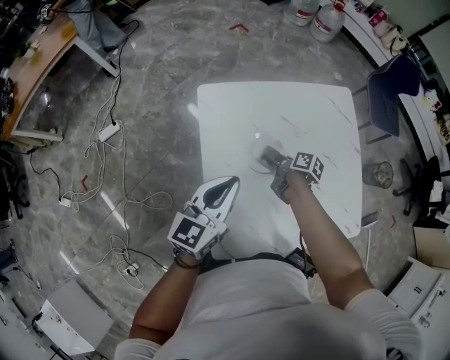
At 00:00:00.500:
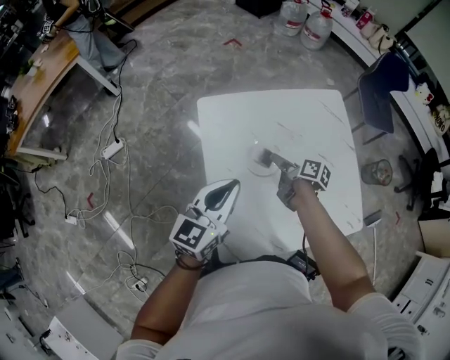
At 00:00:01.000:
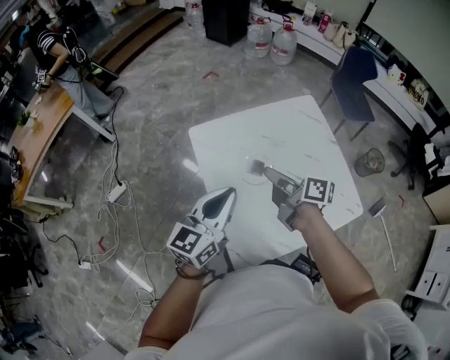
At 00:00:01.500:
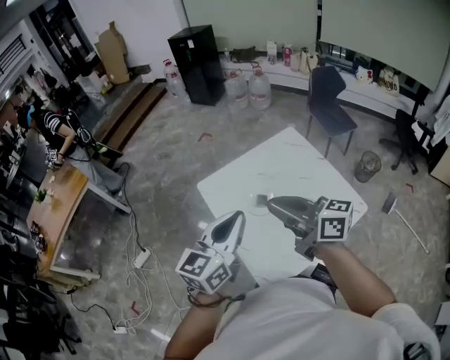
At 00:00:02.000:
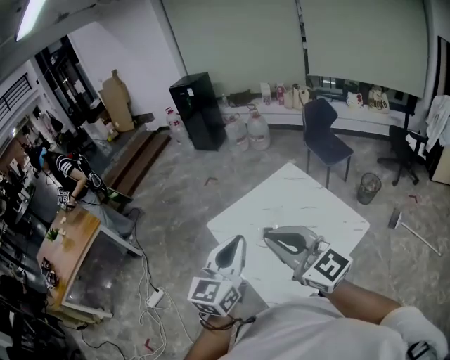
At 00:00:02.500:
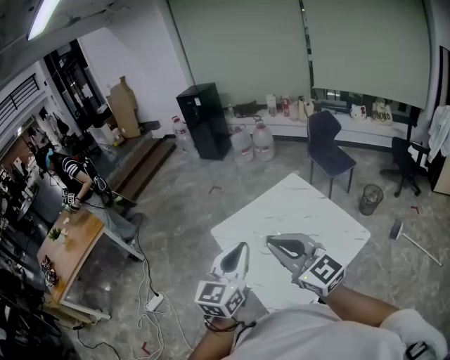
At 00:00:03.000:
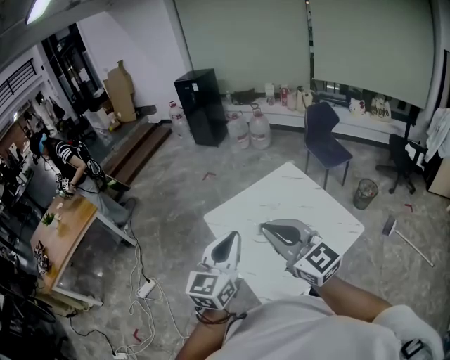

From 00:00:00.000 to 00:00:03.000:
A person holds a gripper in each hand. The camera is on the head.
From 00:00:00.000 to 00:00:01.500: The left gripper heads upward, covering approximately 25 cm.
From 00:00:01.500 to 00:00:03.000: The left gripper shifts by about 5 cm.

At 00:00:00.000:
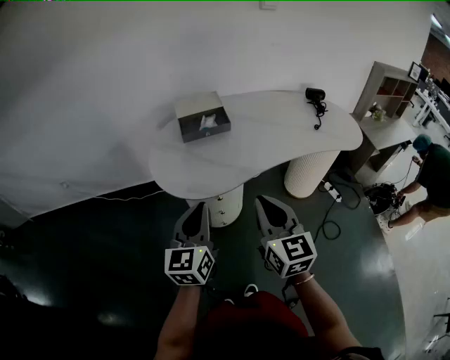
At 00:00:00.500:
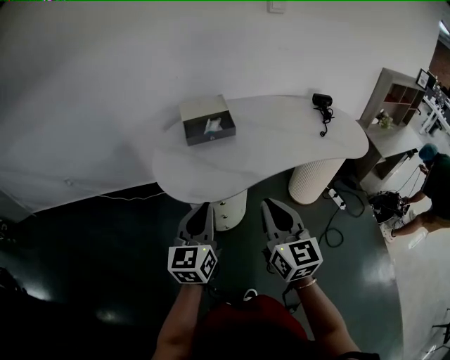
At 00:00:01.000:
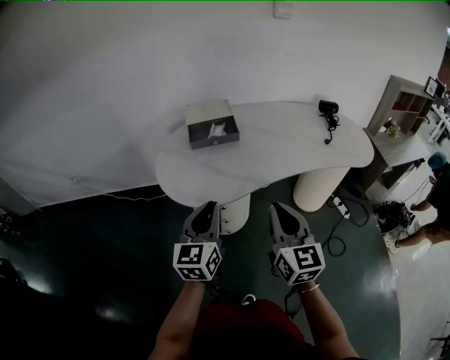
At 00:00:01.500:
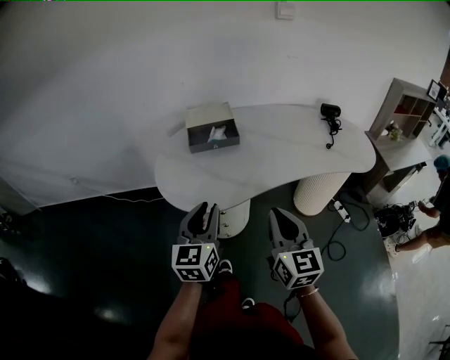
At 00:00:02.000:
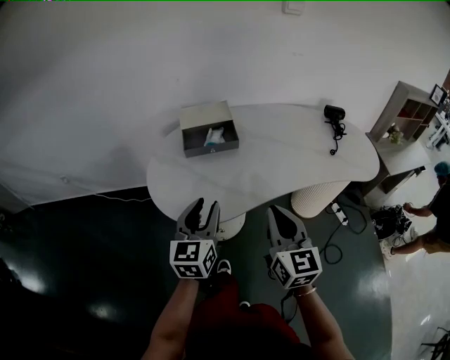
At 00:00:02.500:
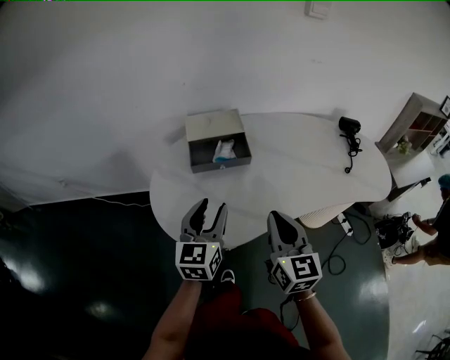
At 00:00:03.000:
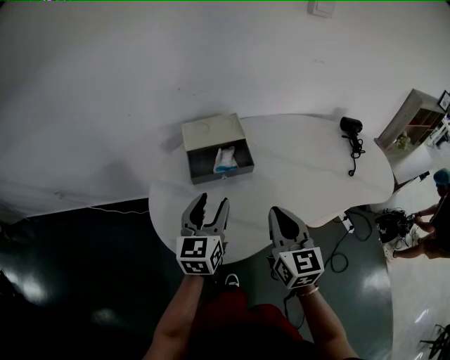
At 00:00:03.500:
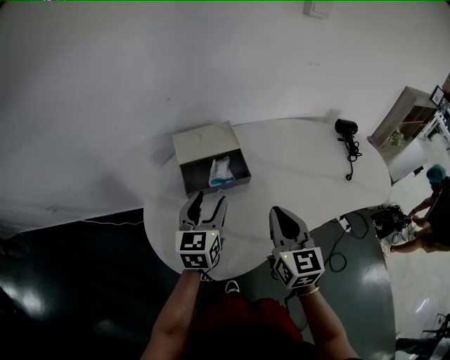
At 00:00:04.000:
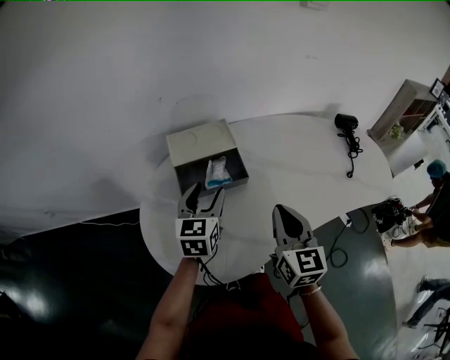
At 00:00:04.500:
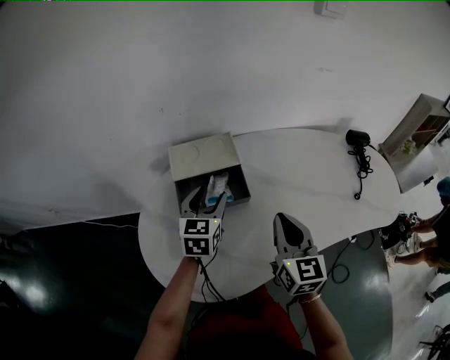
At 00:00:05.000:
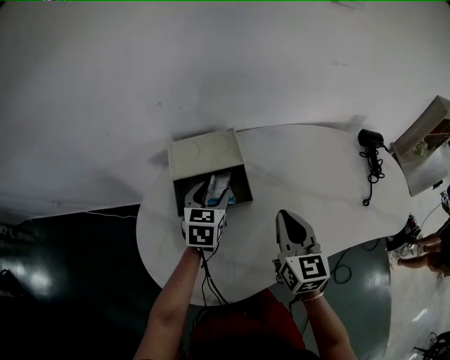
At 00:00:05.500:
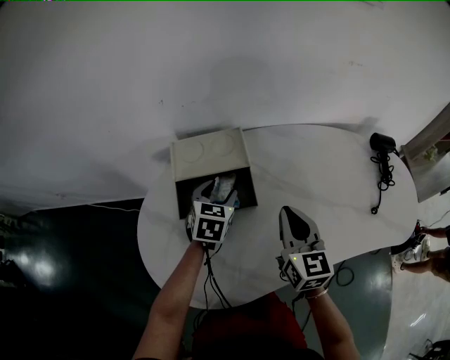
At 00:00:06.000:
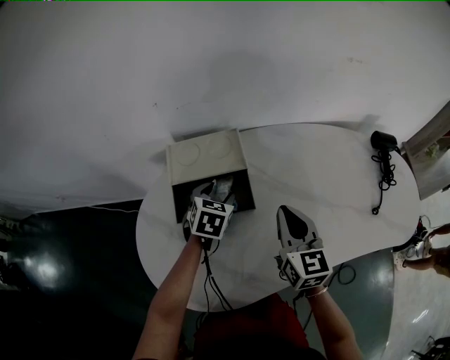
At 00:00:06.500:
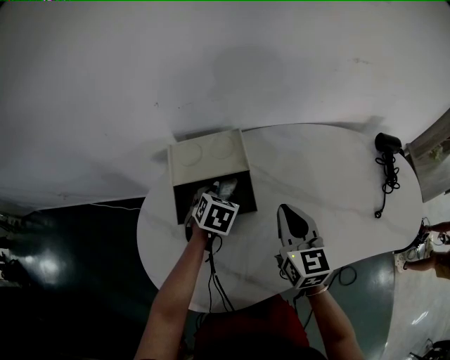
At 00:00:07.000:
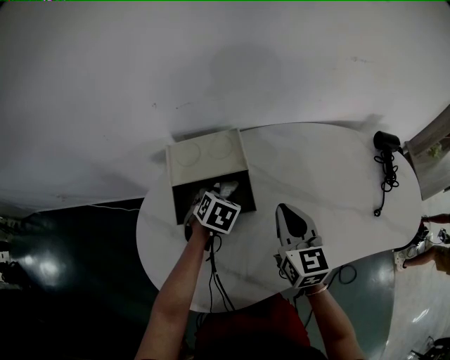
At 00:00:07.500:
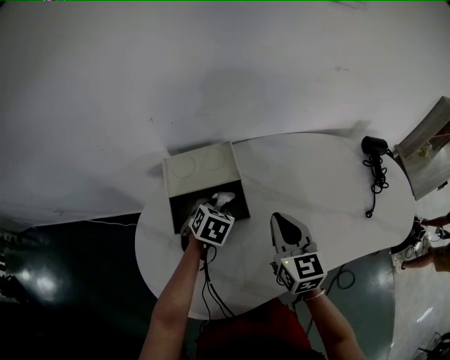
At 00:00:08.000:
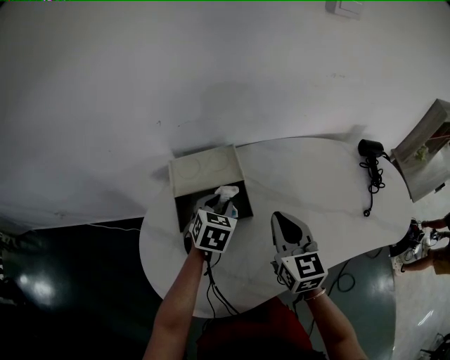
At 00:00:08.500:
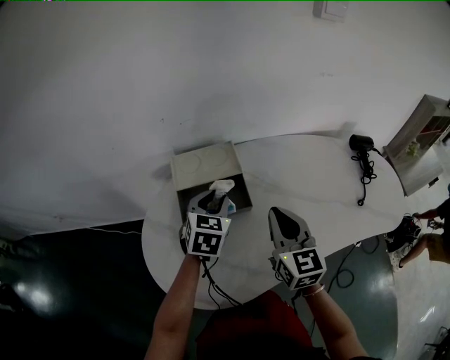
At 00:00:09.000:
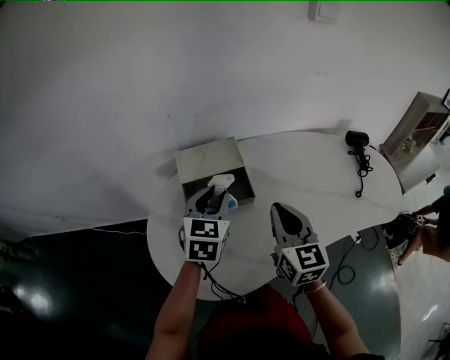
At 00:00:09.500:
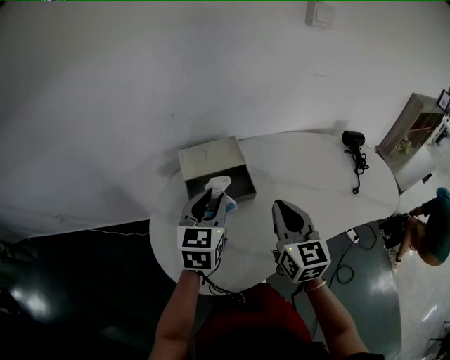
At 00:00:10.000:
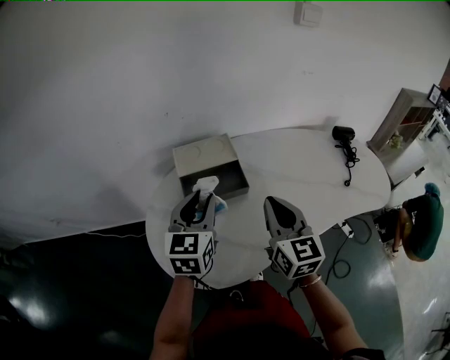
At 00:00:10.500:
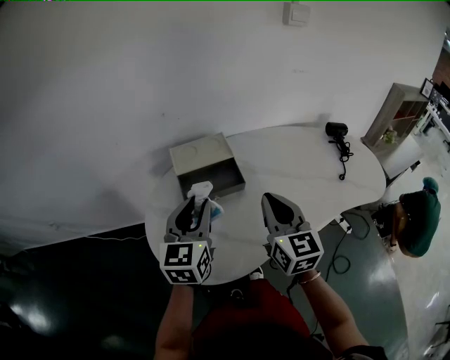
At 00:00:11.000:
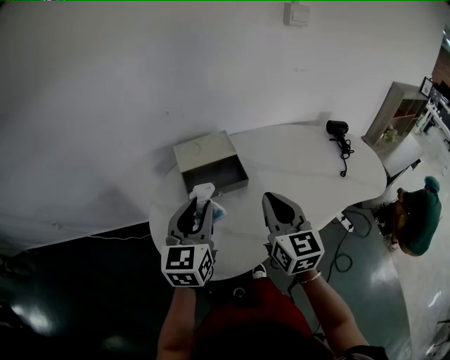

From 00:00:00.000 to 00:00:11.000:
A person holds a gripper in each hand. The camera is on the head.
From 00:00:00.000 to 00:00:02.000: The two grippers go approximately 10 cm forward. The left gripper opens up.
From 00:00:02.000 to 00:00:03.500: Both grippers move forward, roughly 20 cm. The left gripper opens its fingers.
From 00:00:03.500 to 00:00:05.500: The right gripper is displaced forward by about 15 cm. The left gripper shifts roughly 20 cm forward and downward, and rotates approximately 30 degrees.
From 00:00:05.500 to 00:00:07.500: The left gripper swivels about 20 degrees, and closes up.
From 00:00:07.500 to 00:00:09.000: The left gripper is displaced upward and backward by some 20 cm, and tips its fingers upward by approximately 30 degrees; the right gripper travels backward and upward by about 10 cm.
From 00:00:09.000 to 00:00:11.000: The left gripper heads backward and upward, covering some 15 cm; the right gripper heads backward, covering about 10 cm.

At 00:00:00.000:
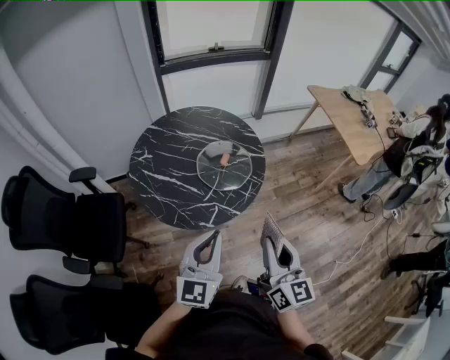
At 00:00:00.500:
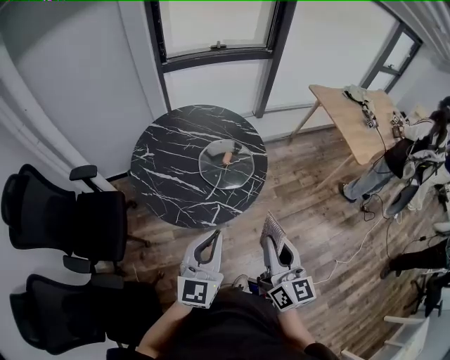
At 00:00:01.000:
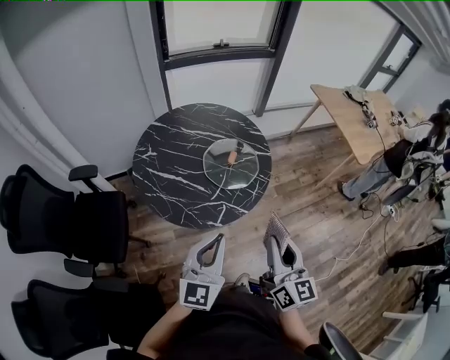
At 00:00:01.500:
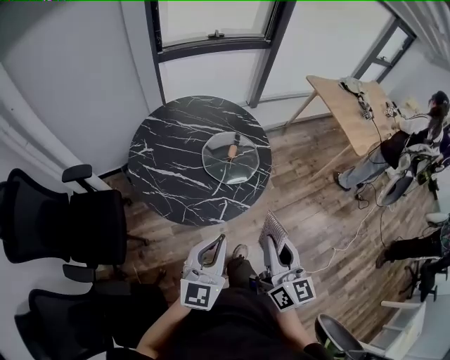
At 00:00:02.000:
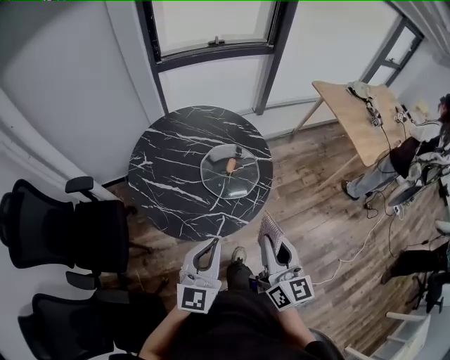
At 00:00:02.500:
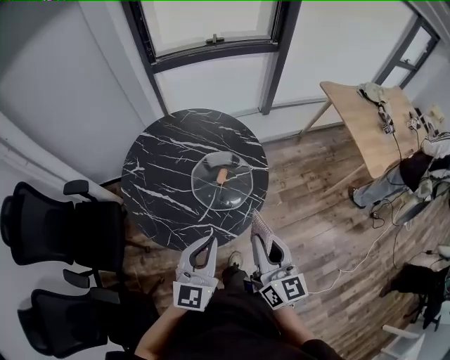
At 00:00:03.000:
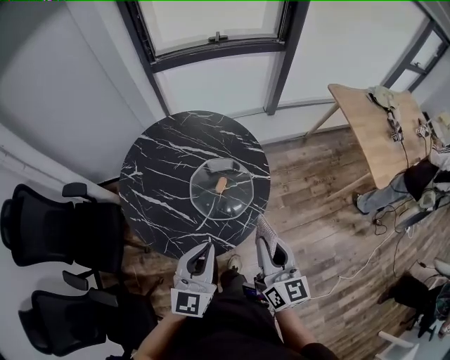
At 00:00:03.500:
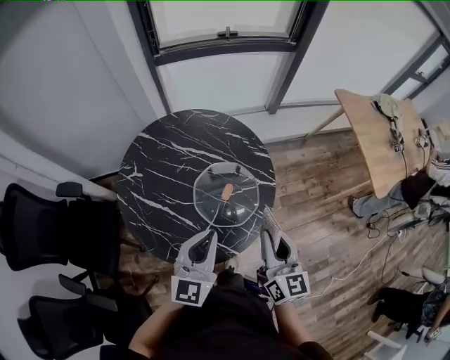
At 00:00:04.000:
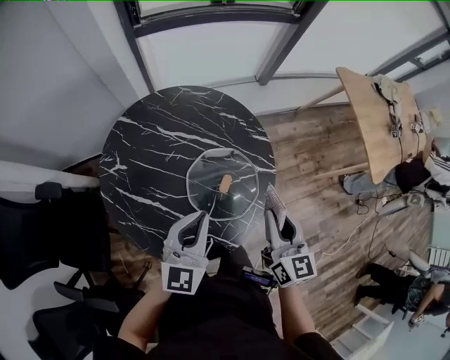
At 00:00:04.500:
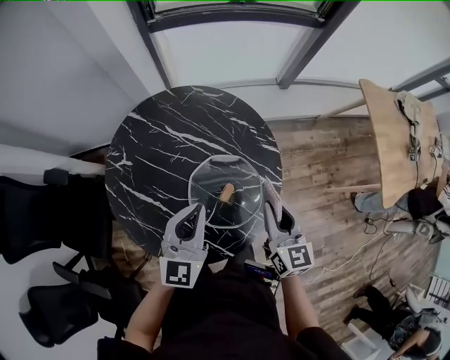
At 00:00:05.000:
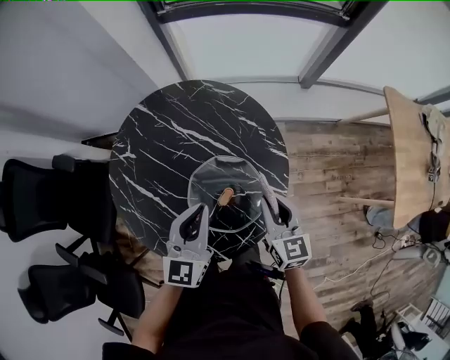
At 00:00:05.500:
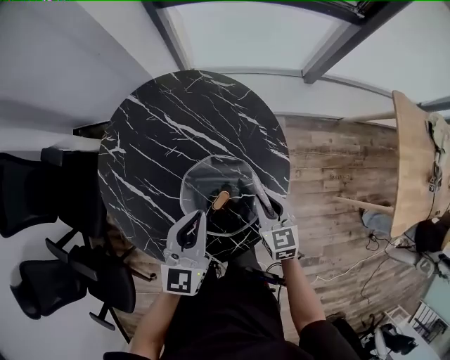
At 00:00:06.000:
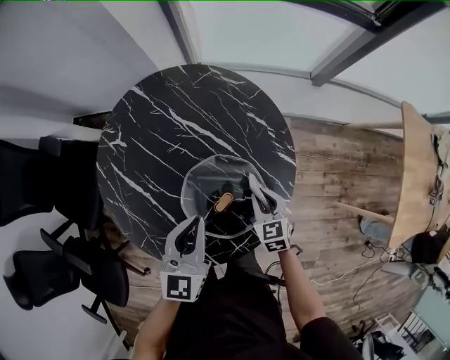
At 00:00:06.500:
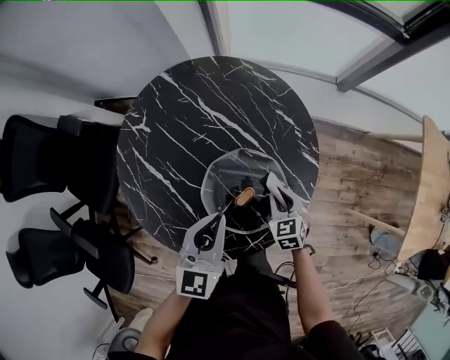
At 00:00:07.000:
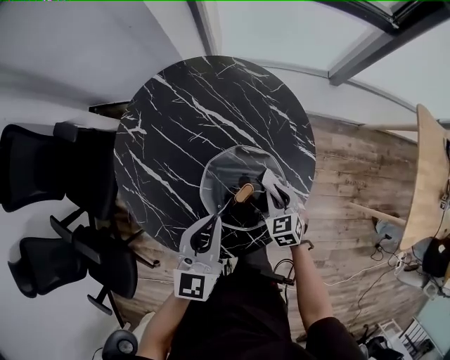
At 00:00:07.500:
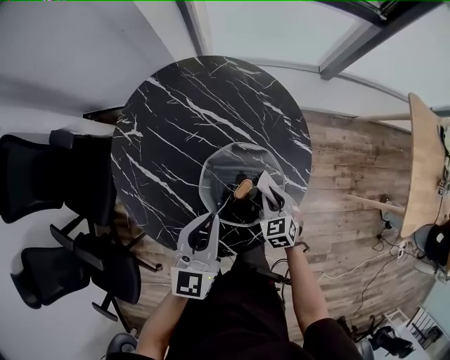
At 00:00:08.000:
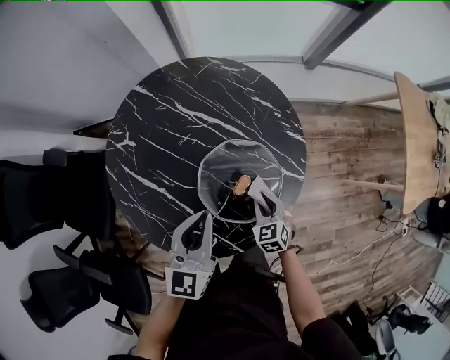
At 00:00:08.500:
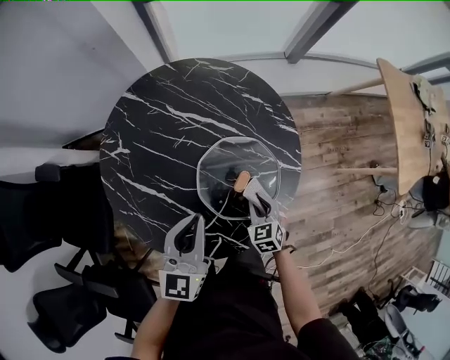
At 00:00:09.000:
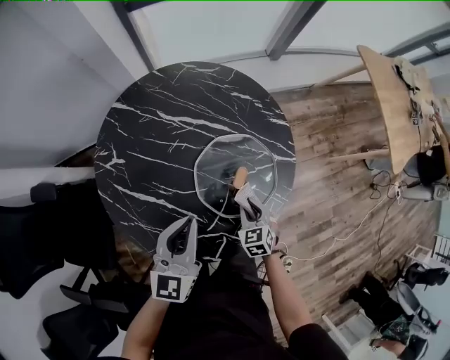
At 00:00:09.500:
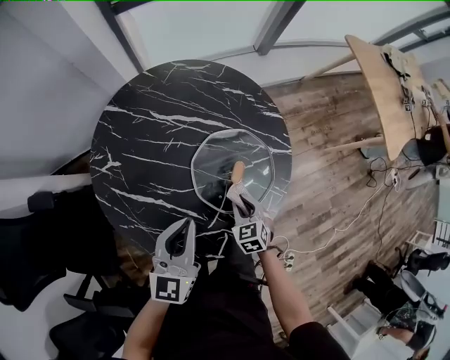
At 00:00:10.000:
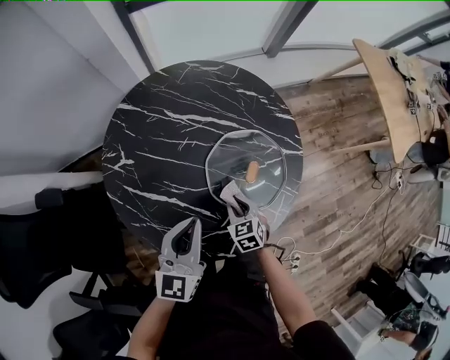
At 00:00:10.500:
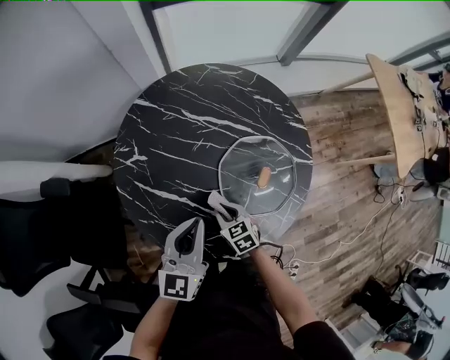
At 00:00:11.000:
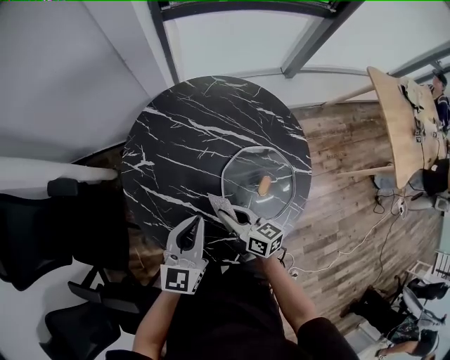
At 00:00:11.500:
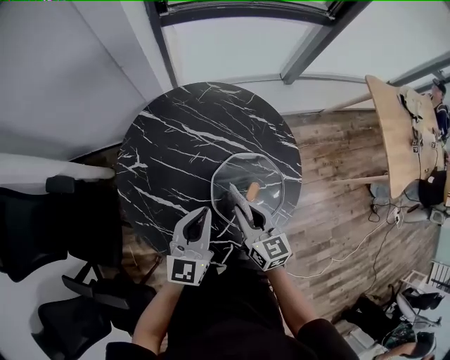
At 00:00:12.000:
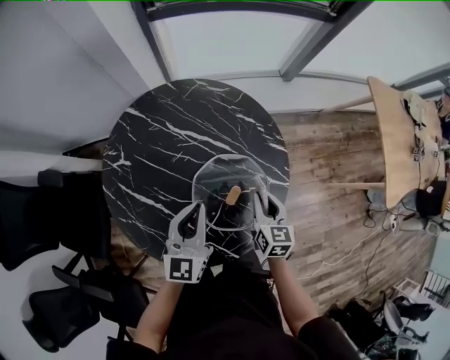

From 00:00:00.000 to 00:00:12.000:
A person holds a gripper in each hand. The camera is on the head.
From 00:00:00.000 to 00:00:02.000: The grippers both shift forward by roughly 5 cm.
From 00:00:02.000 to 00:00:04.000: The grippers both shift forward by about 30 cm.
From 00:00:04.000 to 00:00:06.000: The left gripper shifts about 10 cm downward, and changes its angle by approximately 30 degrees; the right gripper moves downward, some 30 cm, and rotates approximately 50 degrees.
From 00:00:06.000 to 00:00:08.000: The right gripper goes roughly 10 cm backward and to the left. Meanwhile the left gripper ends up about 5 cm from where it was.
From 00:00:08.000 to 00:00:10.000: The right gripper goes some 15 cm to the left and backward, while the left gripper heads to the left, covering roughly 10 cm.
From 00:00:10.000 to 00:00:12.000: The right gripper is displaced to the right, upward and forward by approximately 25 cm, and turns by roughly 30 degrees. Meanwhile the left gripper moves to the right and forward, some 10 cm.
